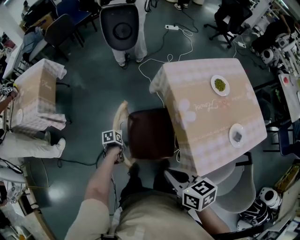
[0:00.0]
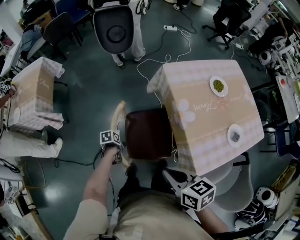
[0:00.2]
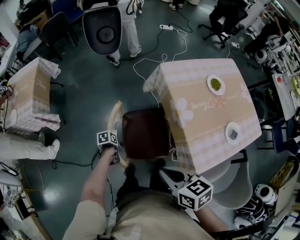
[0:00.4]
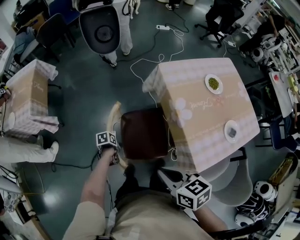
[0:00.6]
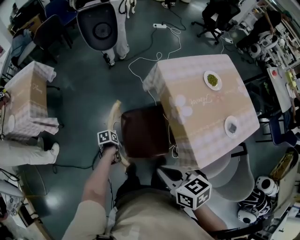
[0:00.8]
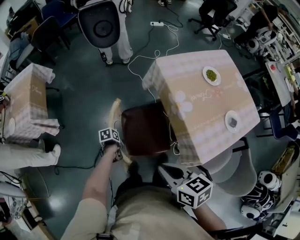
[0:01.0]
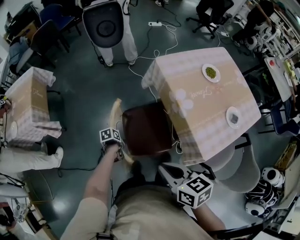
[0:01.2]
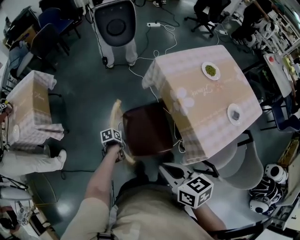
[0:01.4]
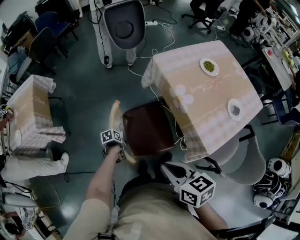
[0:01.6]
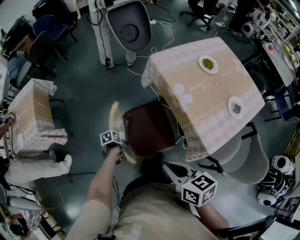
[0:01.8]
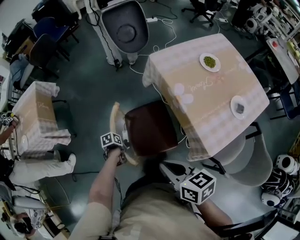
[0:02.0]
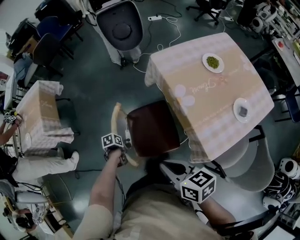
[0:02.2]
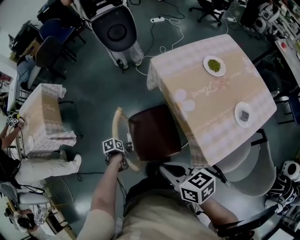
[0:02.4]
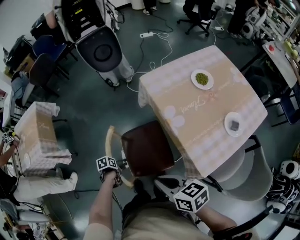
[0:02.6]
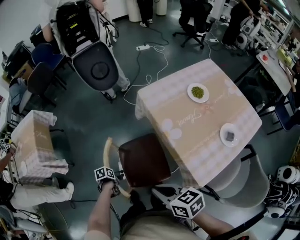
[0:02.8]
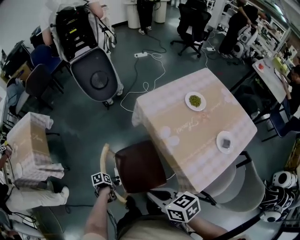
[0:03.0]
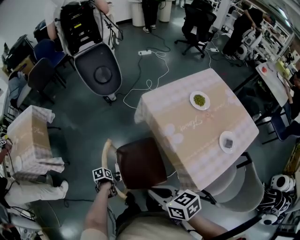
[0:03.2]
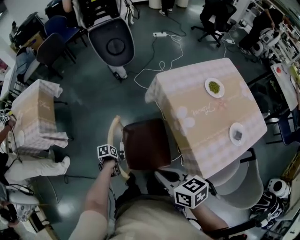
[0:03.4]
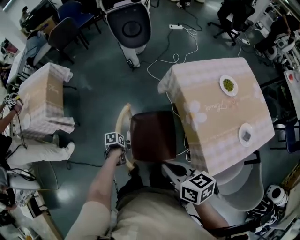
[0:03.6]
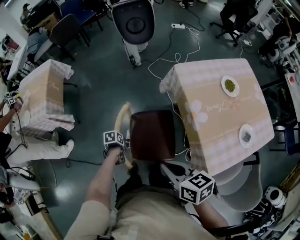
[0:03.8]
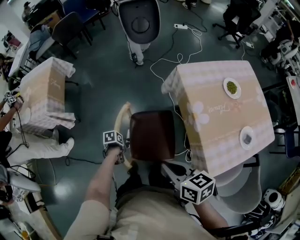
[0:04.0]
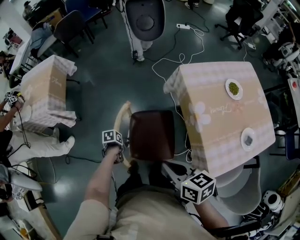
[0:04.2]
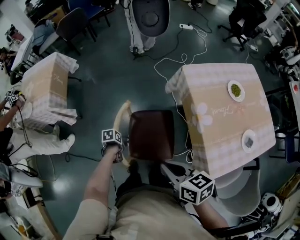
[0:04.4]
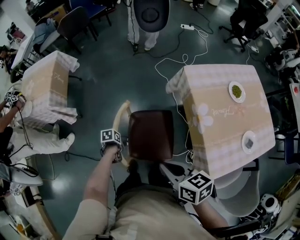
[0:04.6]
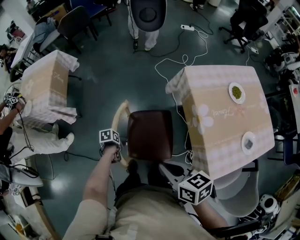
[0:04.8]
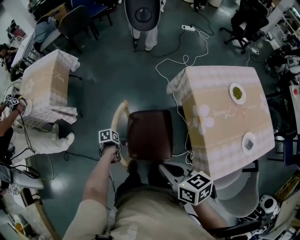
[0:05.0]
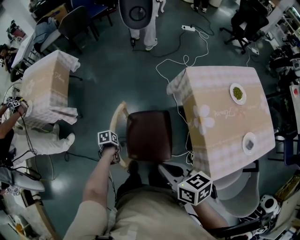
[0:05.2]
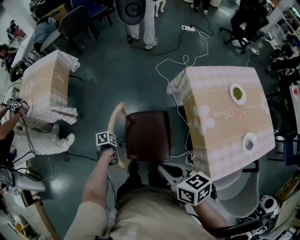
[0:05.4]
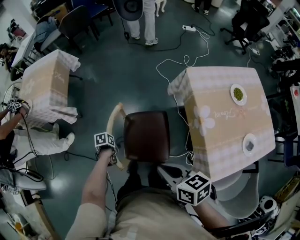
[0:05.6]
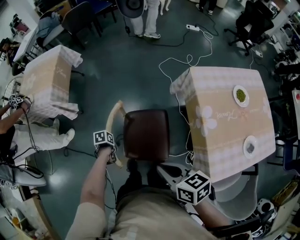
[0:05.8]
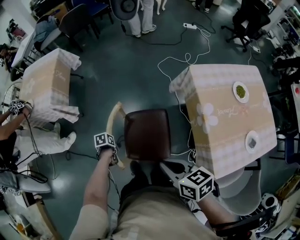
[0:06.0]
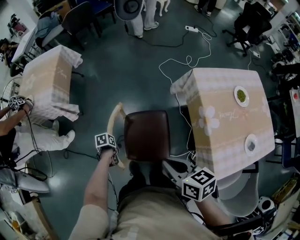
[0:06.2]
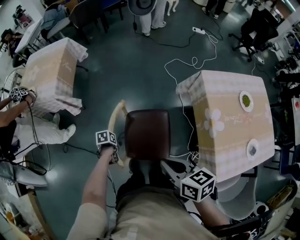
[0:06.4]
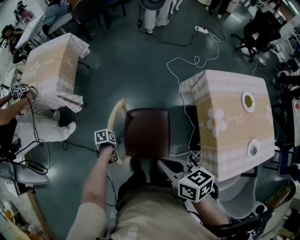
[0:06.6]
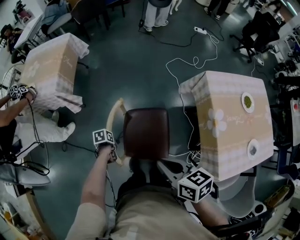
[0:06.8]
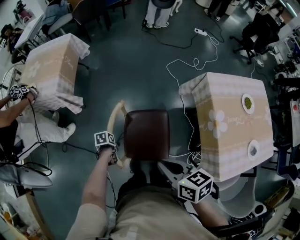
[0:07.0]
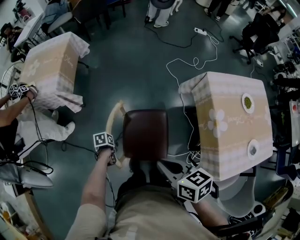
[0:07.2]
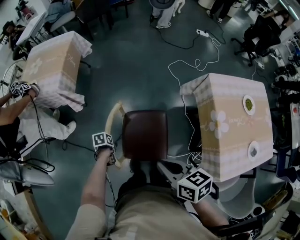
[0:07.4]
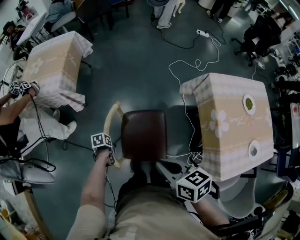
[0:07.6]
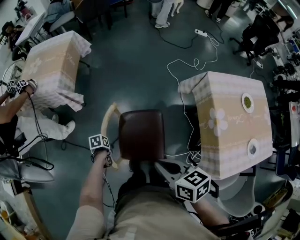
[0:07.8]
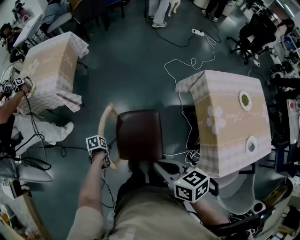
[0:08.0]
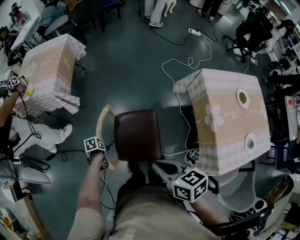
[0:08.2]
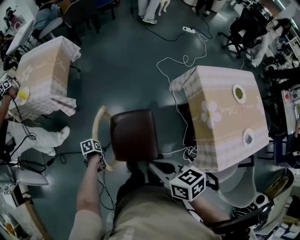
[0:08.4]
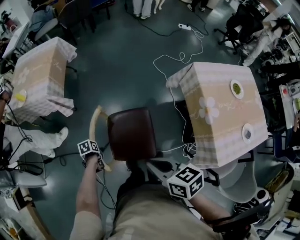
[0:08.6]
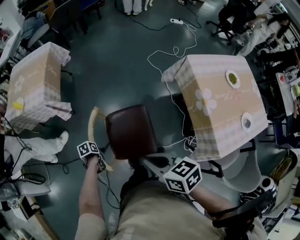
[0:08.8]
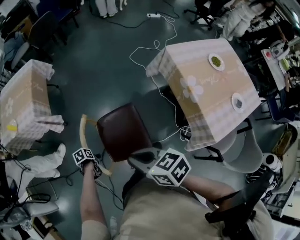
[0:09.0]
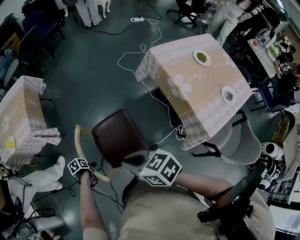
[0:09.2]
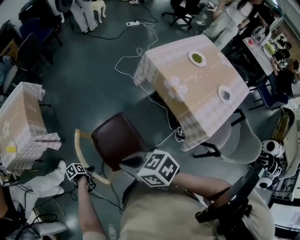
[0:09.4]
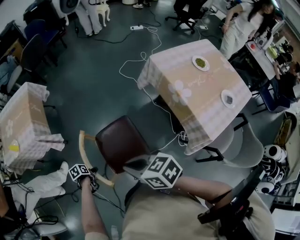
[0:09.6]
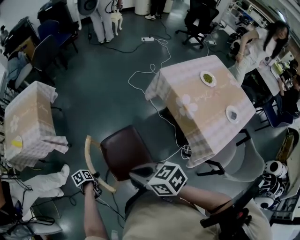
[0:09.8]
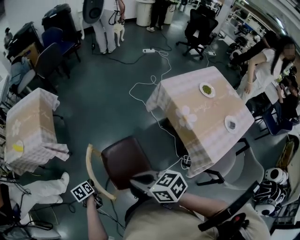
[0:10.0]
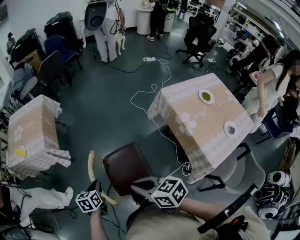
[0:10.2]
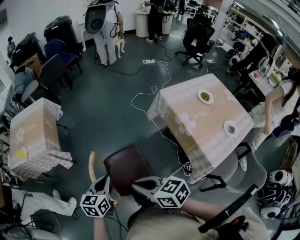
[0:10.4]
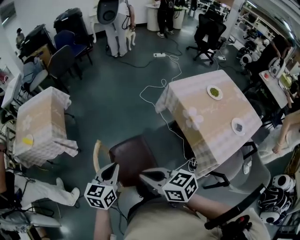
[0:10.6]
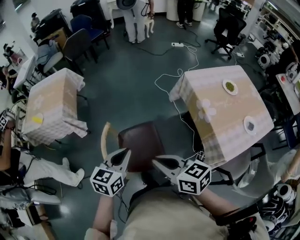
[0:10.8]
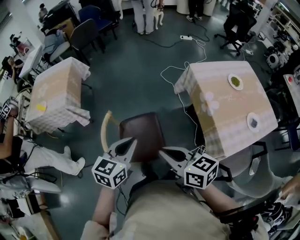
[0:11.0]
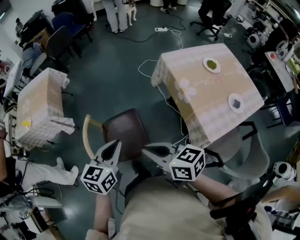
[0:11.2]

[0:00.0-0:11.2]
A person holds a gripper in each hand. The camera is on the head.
0:00.0 to 0:01.6: The right gripper travels to the left and backward by about 10 cm.
0:01.6 to 0:03.2: The right gripper moves about 5 cm.
0:03.2 to 0:04.8: The right gripper shifts by roughly 5 cm, while the left gripper moves approximately 5 cm.
0:04.8 to 0:06.4: The right gripper ends up about 5 cm from where it was; the left gripper changes place by approximately 10 cm.
0:06.4 to 0:08.0: The right gripper shifts by some 10 cm. The left gripper changes place by some 10 cm.
0:08.0 to 0:09.6: The left gripper shifts by roughly 5 cm, and opens its fingers. The right gripper shifts by approximately 5 cm.
0:09.6 to 0:11.2: The right gripper changes place by about 15 cm, while the left gripper goes about 35 cm upward, tips its fingers upward by roughly 50 degrees, and closes its fingers.

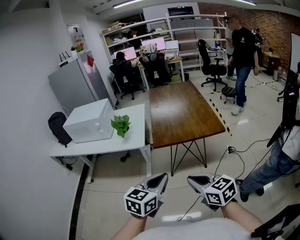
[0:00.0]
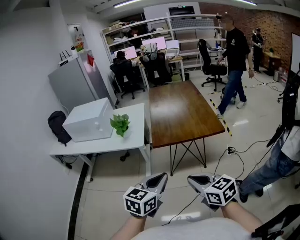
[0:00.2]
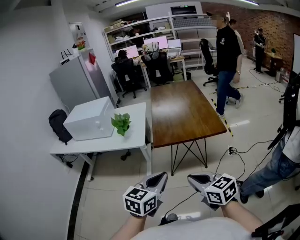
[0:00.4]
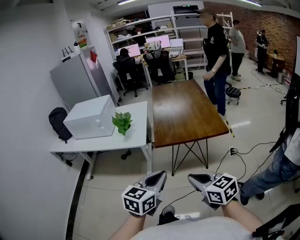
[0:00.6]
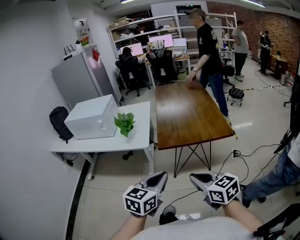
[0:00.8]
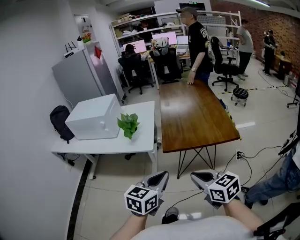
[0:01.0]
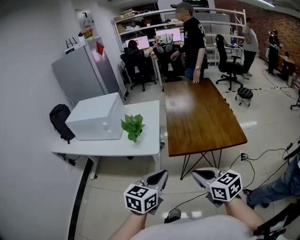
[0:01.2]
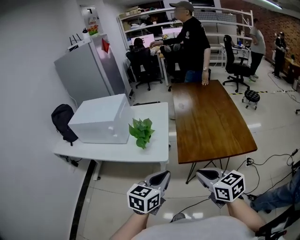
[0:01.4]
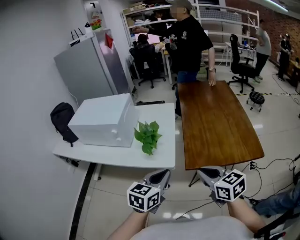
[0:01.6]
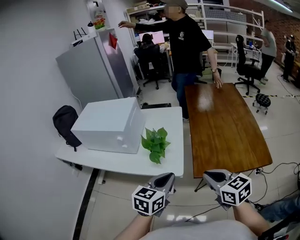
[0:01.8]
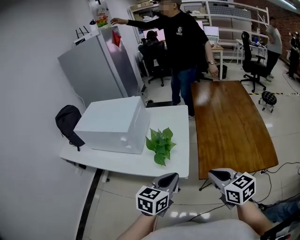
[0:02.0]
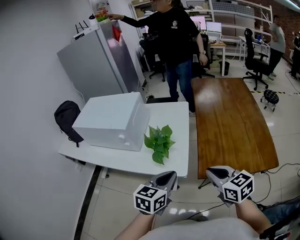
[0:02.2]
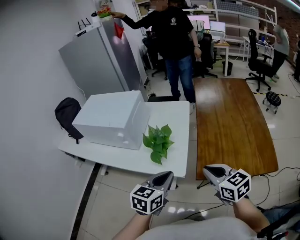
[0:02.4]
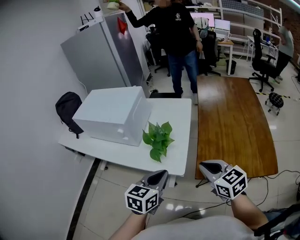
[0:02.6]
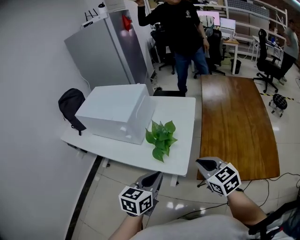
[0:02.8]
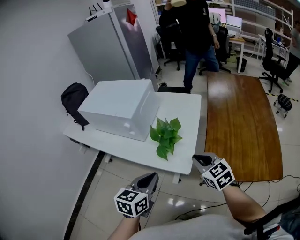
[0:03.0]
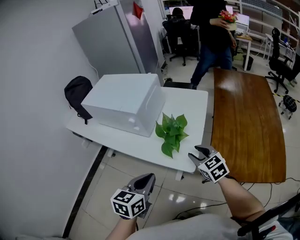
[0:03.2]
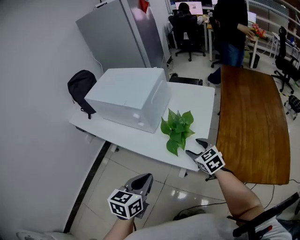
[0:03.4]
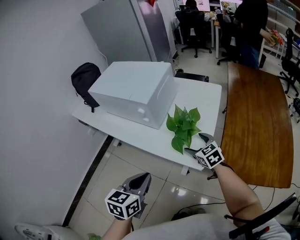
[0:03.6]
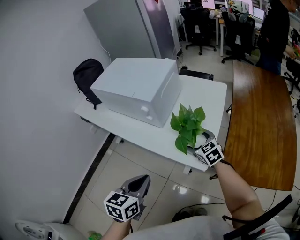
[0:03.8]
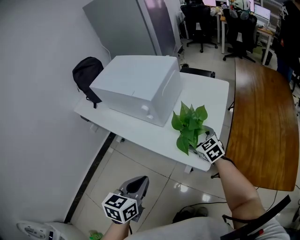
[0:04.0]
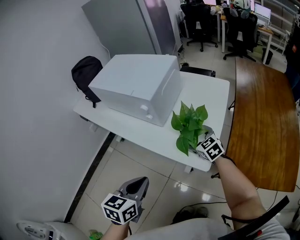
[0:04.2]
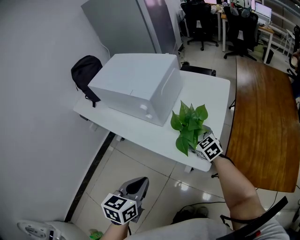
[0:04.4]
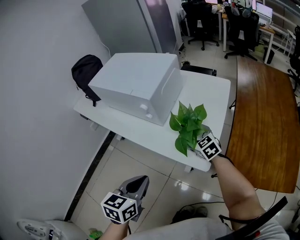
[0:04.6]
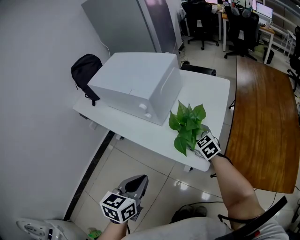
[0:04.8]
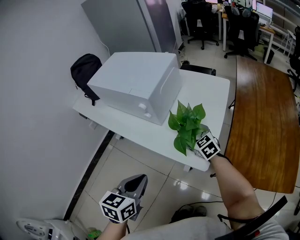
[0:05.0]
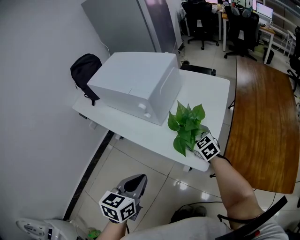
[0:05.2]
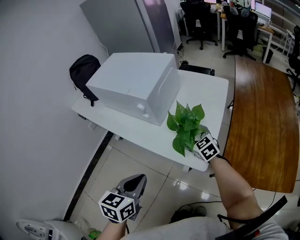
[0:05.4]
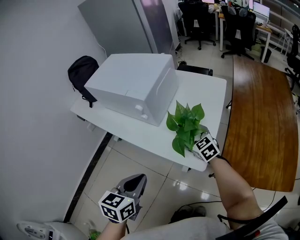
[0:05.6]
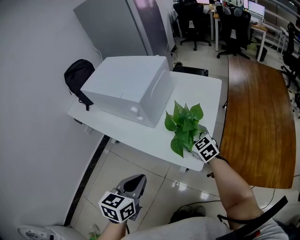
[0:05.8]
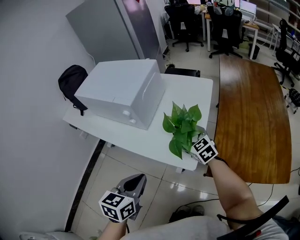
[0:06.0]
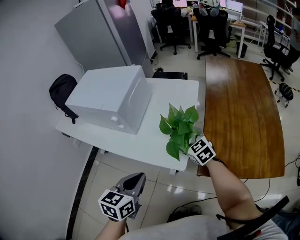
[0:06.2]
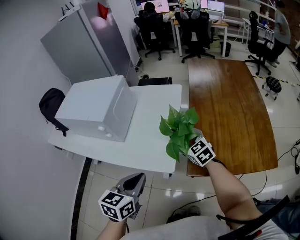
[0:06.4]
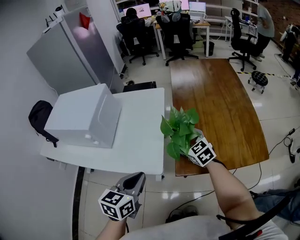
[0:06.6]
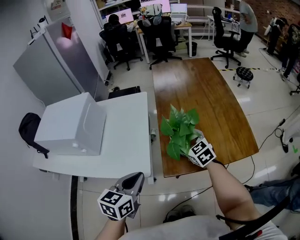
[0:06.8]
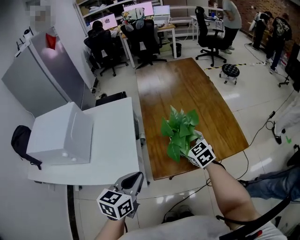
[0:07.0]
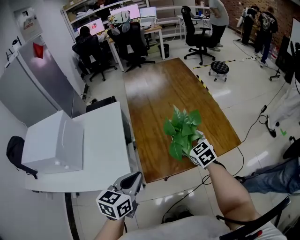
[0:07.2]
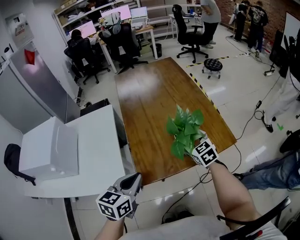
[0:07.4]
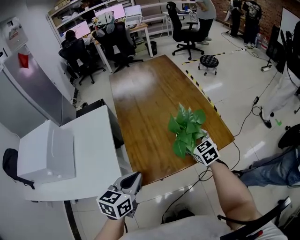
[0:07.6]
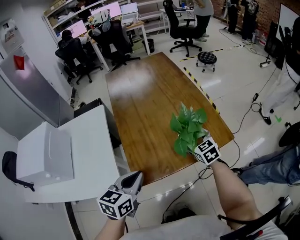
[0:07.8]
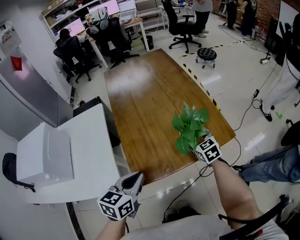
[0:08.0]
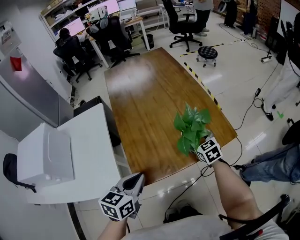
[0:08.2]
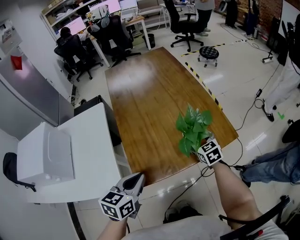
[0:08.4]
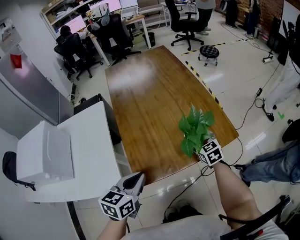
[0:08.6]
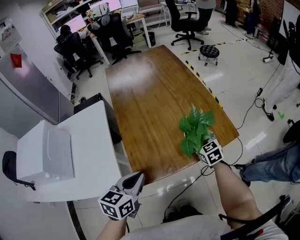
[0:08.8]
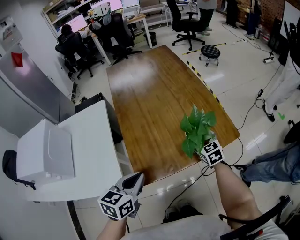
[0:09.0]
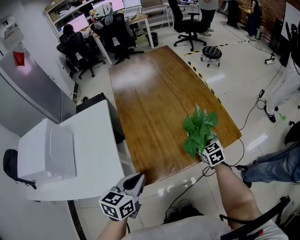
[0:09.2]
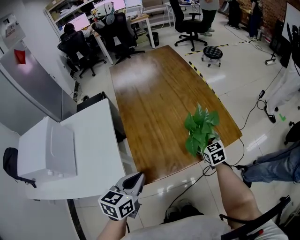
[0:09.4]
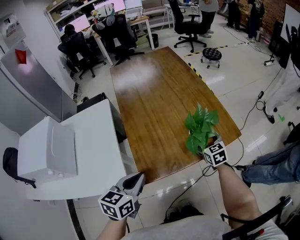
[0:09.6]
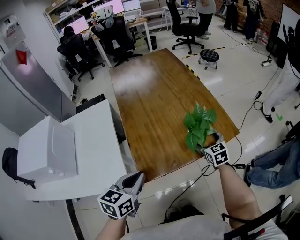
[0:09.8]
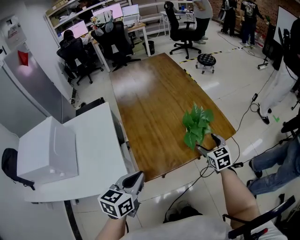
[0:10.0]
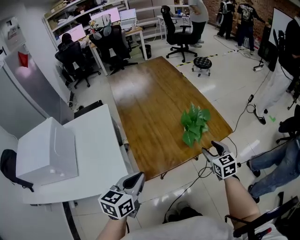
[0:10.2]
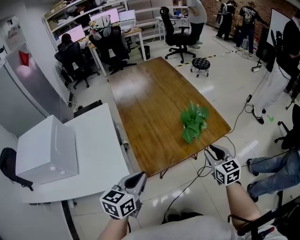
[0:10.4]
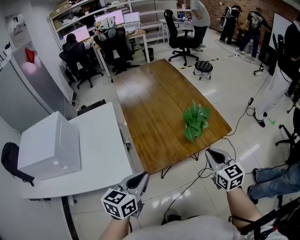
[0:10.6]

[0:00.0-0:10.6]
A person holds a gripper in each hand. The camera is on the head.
0:00.0 to 0:01.6: The left gripper moves forward and to the left, roughly 35 cm; the right gripper travels forward by approximately 30 cm.
0:01.6 to 0:03.0: The right gripper travels forward and downward by some 20 cm, and rotates roughly 20 degrees. The left gripper shifts approximately 15 cm to the left and forward.
0:03.0 to 0:04.6: The left gripper heads to the left, covering roughly 10 cm, while the right gripper moves forward, downward and to the left, about 25 cm, and opens its fingers.
0:04.6 to 0:06.0: The right gripper changes place by roughly 5 cm.
0:06.0 to 0:07.6: The right gripper moves some 50 cm, and turns by approximately 40 degrees. The left gripper shifts by about 30 cm, and rotates roughly 40 degrees.
0:07.6 to 0:09.0: The right gripper heads downward, covering approximately 5 cm.
0:09.0 to 0:10.6: The left gripper goes approximately 10 cm backward, while the right gripper shifts roughly 25 cm backward and upward, and closes.

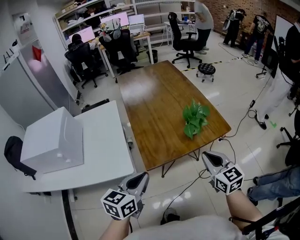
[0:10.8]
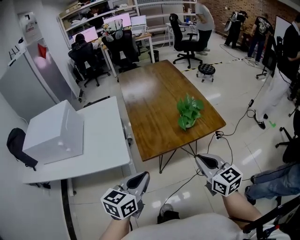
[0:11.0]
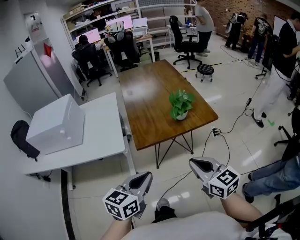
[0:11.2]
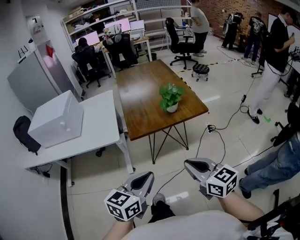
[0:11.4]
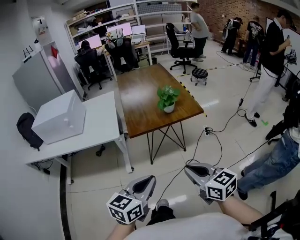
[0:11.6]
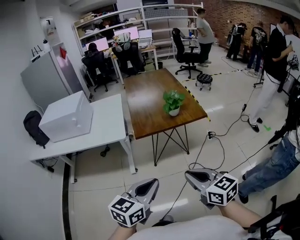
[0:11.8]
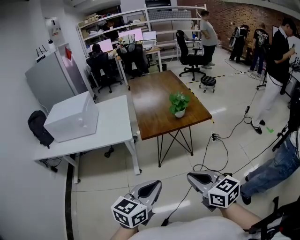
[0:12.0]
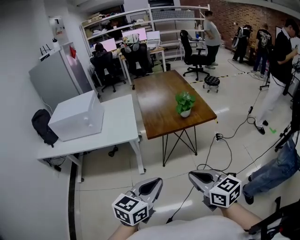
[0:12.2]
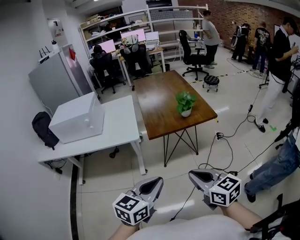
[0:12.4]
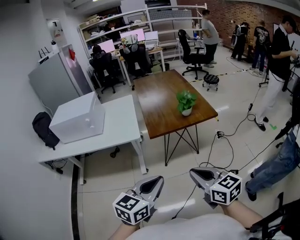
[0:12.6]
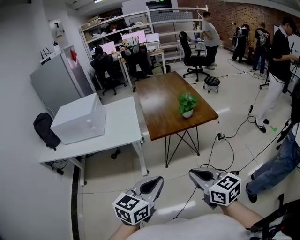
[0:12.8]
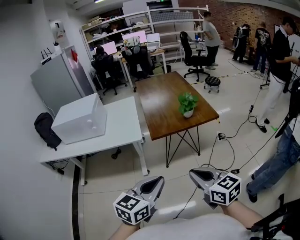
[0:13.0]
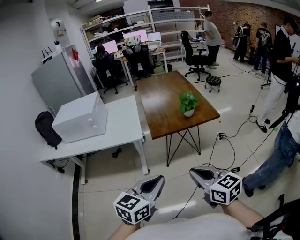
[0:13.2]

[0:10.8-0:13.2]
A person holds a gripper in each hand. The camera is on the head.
0:10.8 to 0:12.0: The grippers both shift backward by approximately 35 cm. The right gripper changes its angle by some 20 degrees.
0:12.0 to 0:13.2: The grippers make only small movements.
